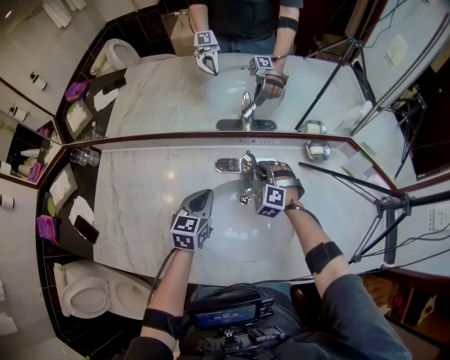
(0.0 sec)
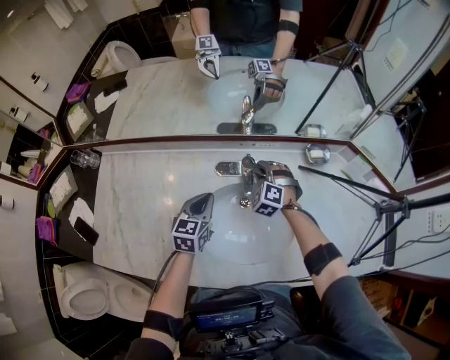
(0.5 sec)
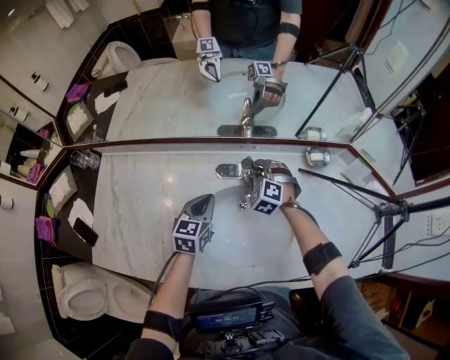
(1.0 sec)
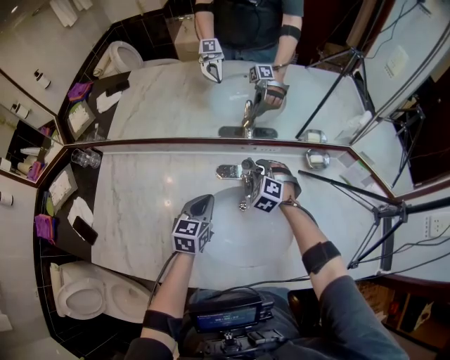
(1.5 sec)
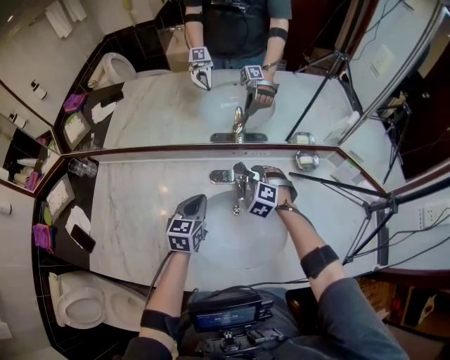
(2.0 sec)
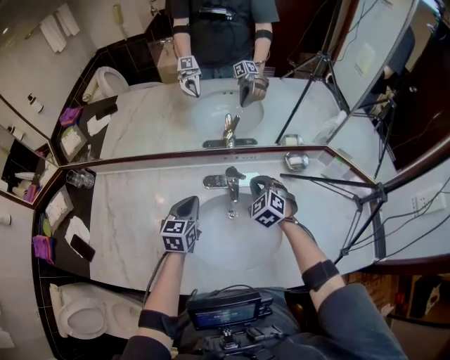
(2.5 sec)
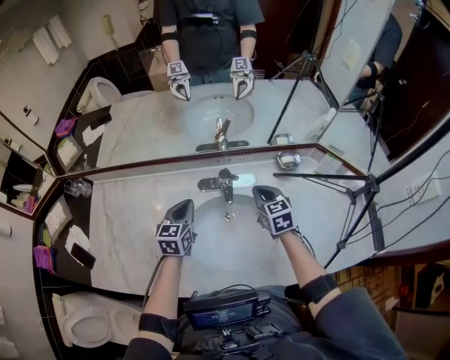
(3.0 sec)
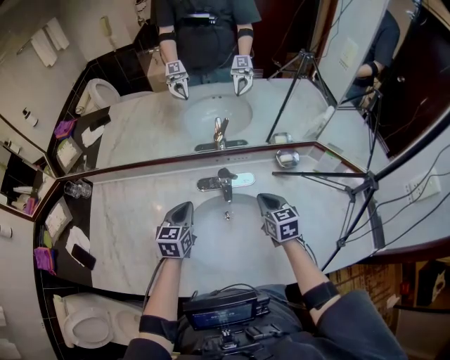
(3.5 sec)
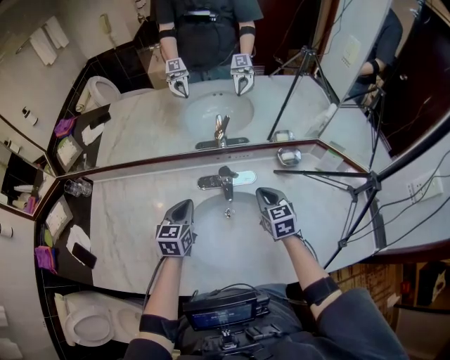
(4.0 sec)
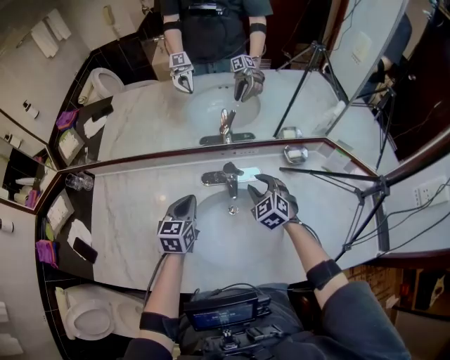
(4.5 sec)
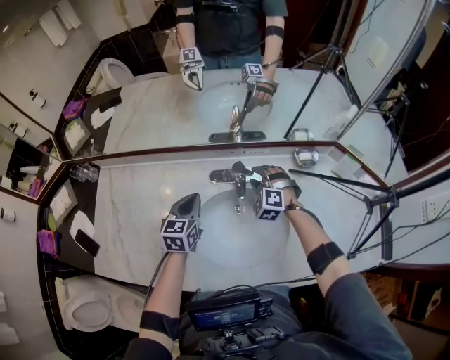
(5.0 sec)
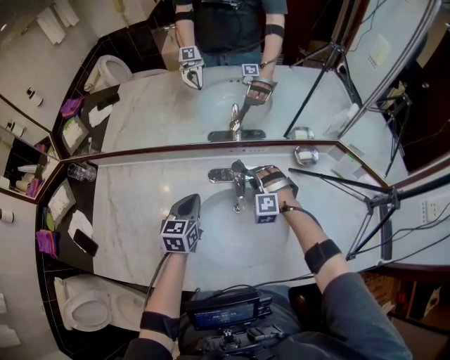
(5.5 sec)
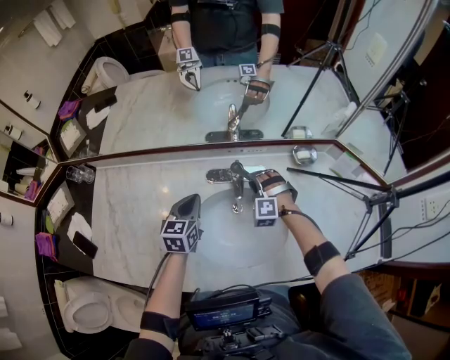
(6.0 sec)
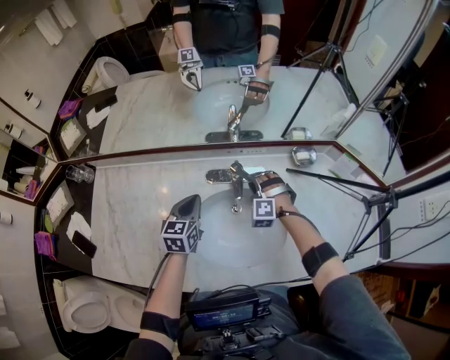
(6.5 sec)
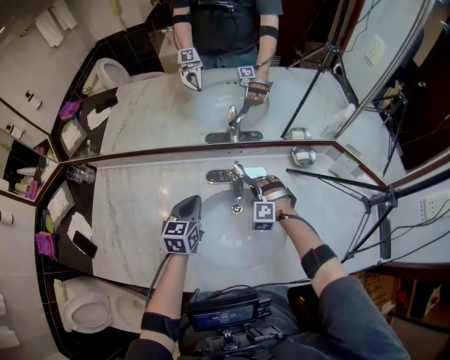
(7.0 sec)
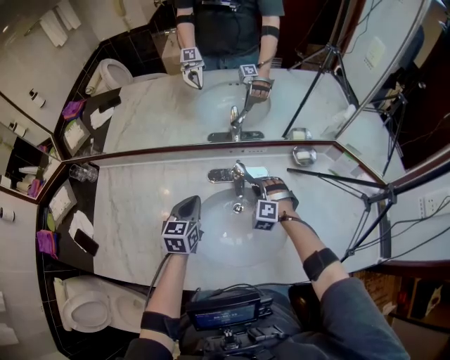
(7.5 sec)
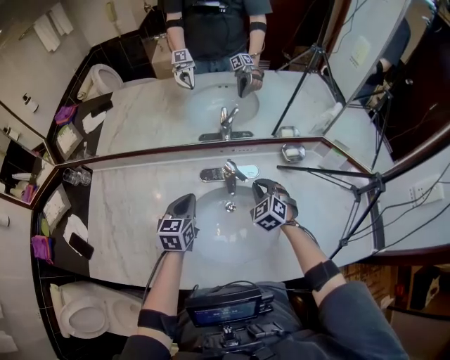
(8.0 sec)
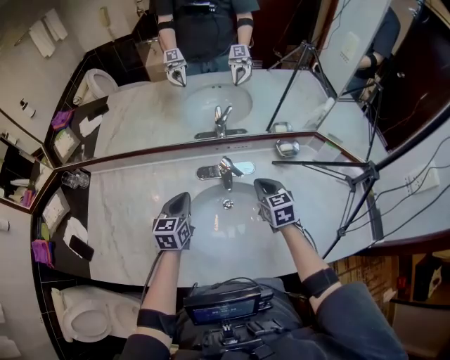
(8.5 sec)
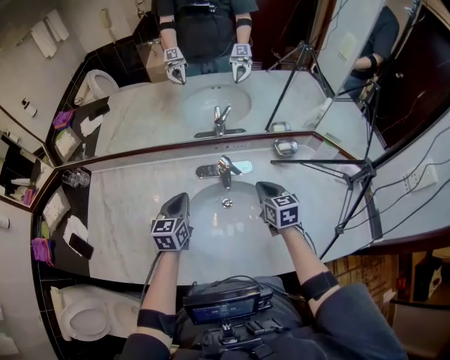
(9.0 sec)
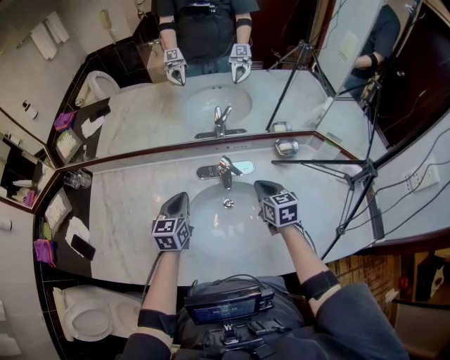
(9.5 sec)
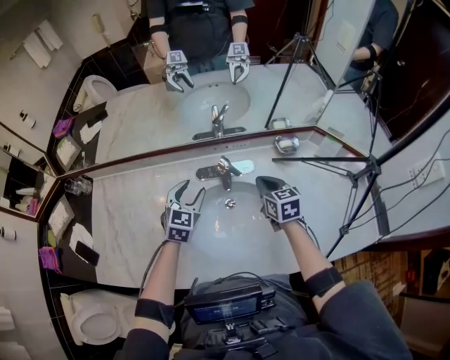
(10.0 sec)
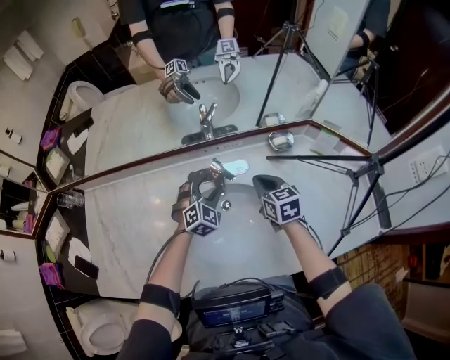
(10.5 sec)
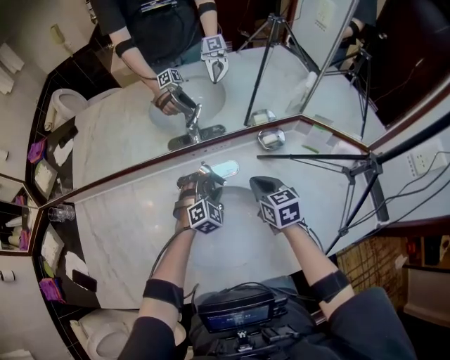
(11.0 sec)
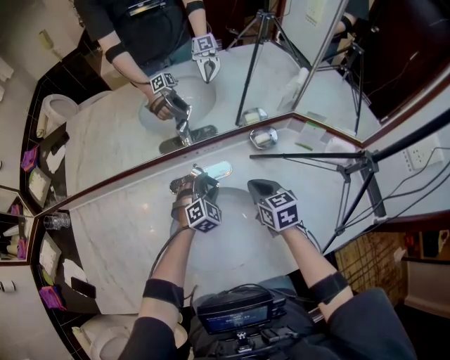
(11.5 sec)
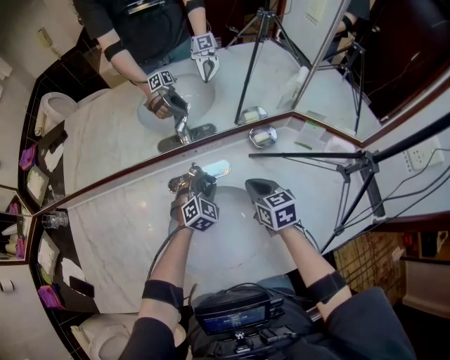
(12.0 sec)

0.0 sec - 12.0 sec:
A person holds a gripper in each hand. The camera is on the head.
0.0 sec - 2.0 sec: The grippers stay close to where they were, moving slightly.
2.0 sec - 4.0 sec: The right gripper goes some 15 cm to the right, backward and upward, rotates around the line of its fingers by some 60 degrees, clockwise from behind, and closes up.
4.0 sec - 6.0 sec: The right gripper shifts about 15 cm downward, to the left and forward, rotates around the line of its fingers by approximately 80 degrees, counterclockwise from behind, and opens up.
6.0 sec - 8.0 sec: The right gripper heads upward, covering some 5 cm, rolls clockwise, seen from behind, by some 40 degrees, and closes its fingers.
8.0 sec - 10.0 sec: The left gripper changes place by some 5 cm, rotates roughly 30 degrees, and opens up. Meanwhile the right gripper ends up some 5 cm from where it was, and twists some 50 degrees clockwise, seen from behind.
10.0 sec - 12.0 sec: The left gripper is displaced to the right, downward and forward by roughly 20 cm, and swivels roughly 30 degrees; the right gripper moves roughly 5 cm.

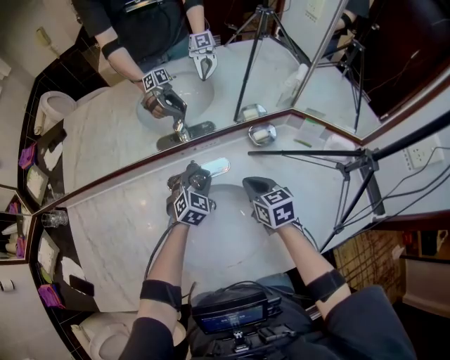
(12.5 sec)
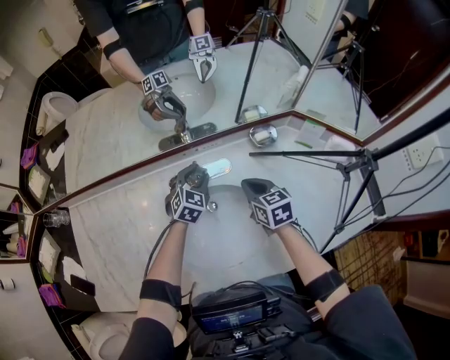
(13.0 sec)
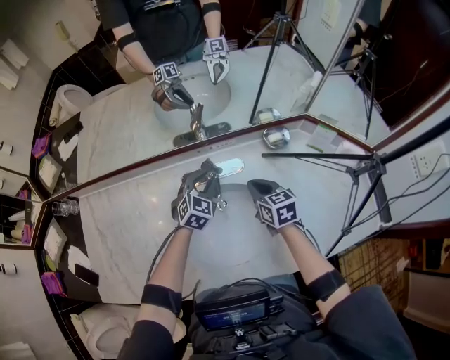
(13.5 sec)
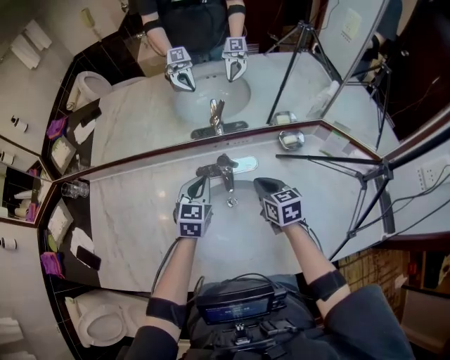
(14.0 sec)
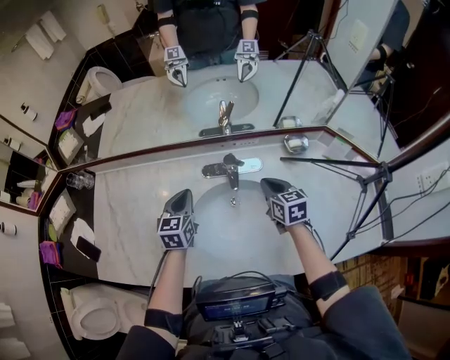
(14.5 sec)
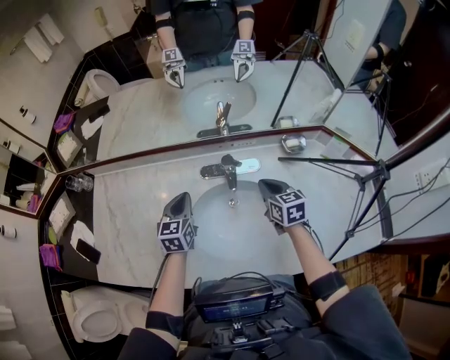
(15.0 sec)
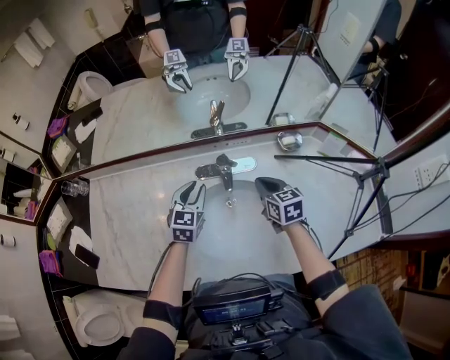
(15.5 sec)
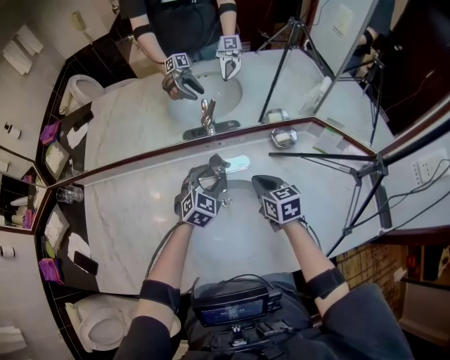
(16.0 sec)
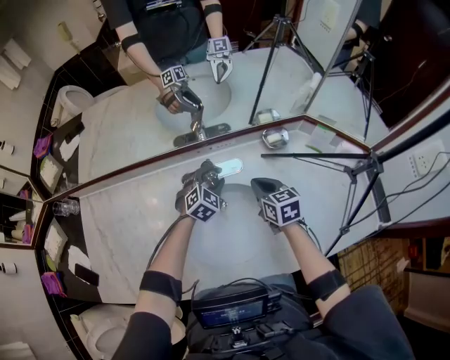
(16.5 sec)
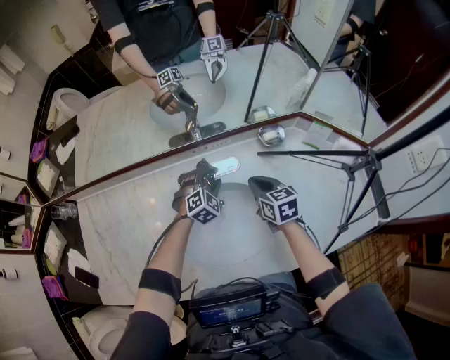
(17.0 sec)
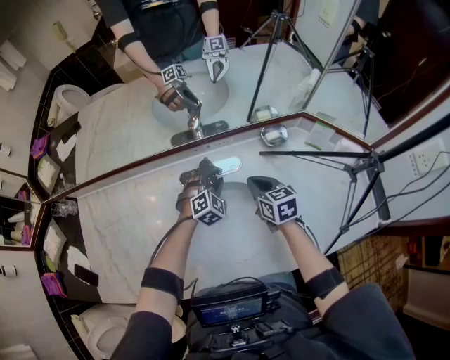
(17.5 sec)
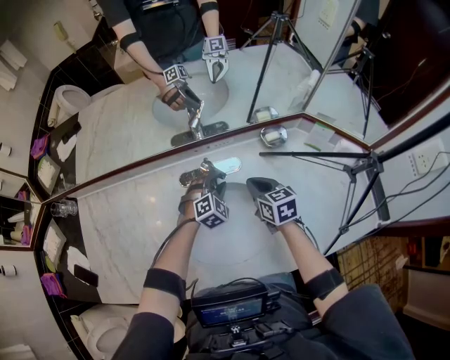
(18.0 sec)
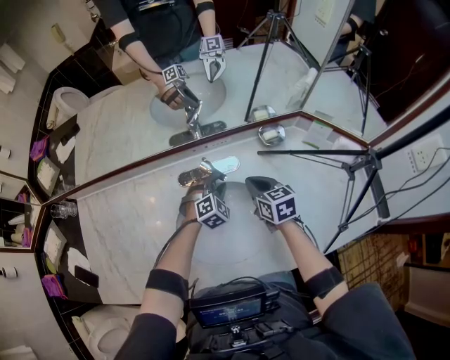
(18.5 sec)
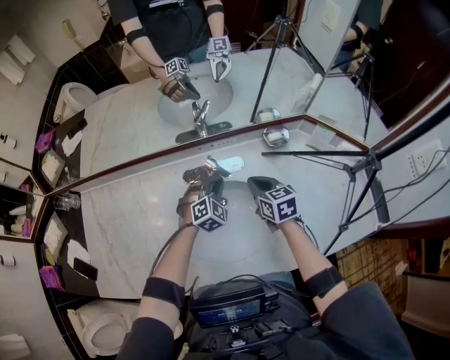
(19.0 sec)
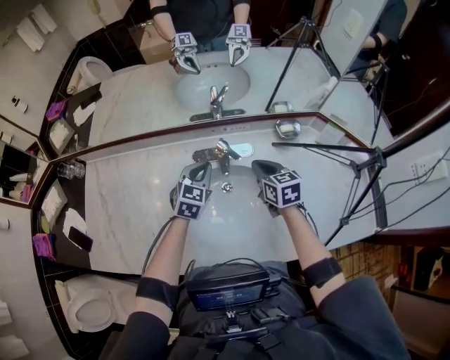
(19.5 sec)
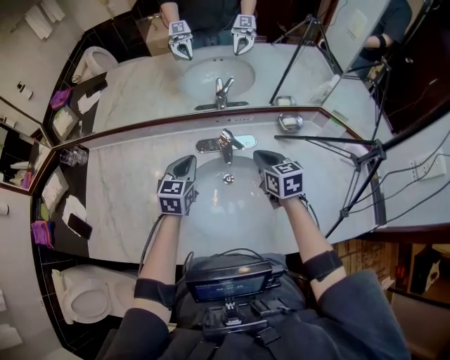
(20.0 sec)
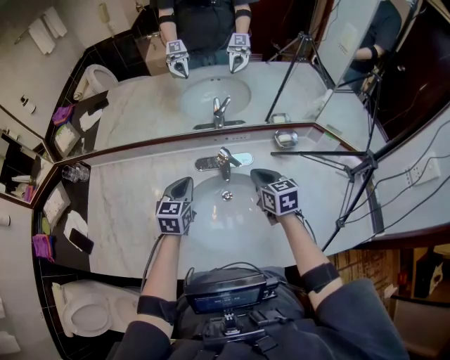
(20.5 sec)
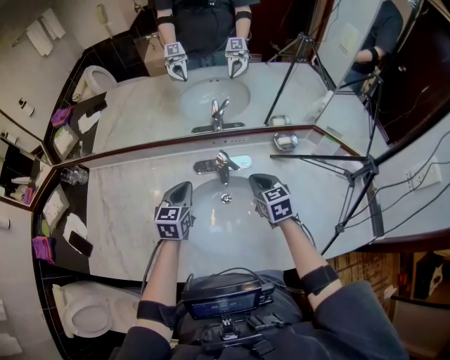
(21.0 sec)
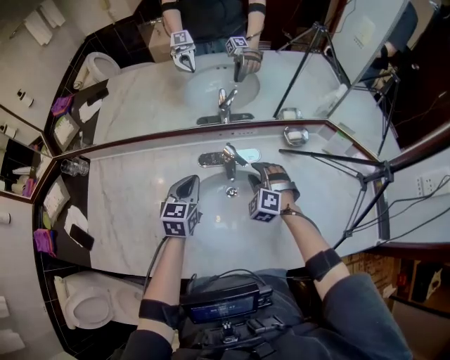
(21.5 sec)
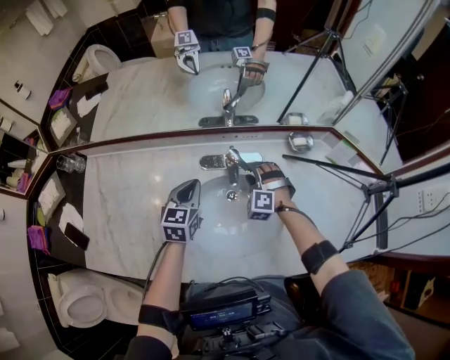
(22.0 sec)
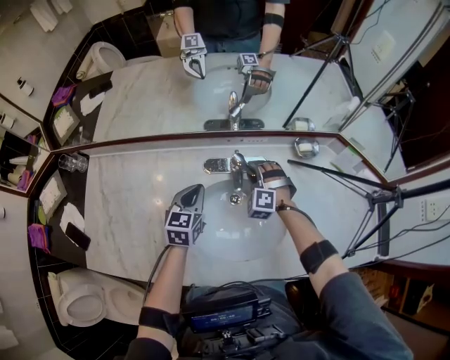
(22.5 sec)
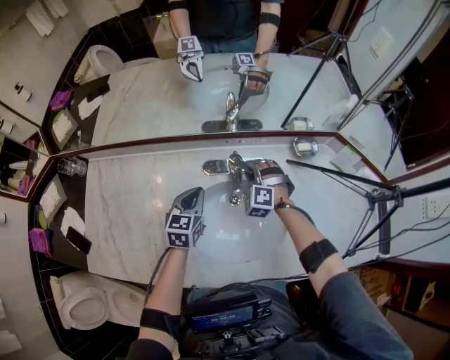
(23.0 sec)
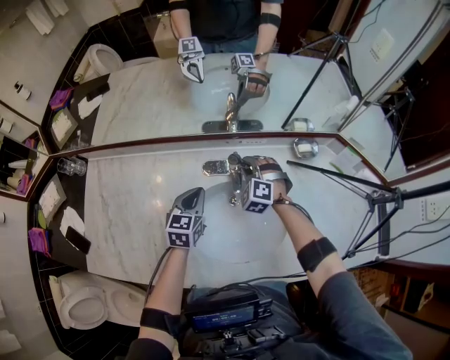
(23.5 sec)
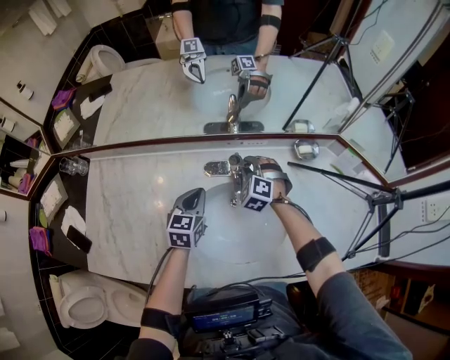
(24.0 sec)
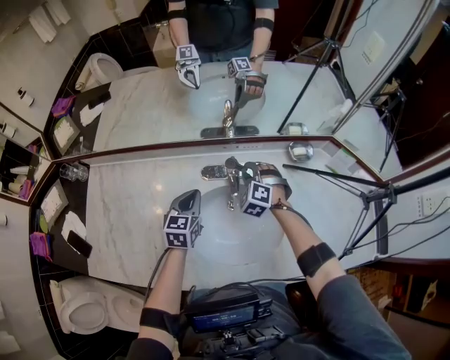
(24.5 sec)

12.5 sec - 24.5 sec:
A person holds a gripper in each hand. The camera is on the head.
12.5 sec - 14.5 sec: The right gripper moves to the left, some 5 cm. The left gripper shifts some 25 cm to the left, backward and upward, rotates around the line of its fingers by about 40 degrees, counterclockwise from behind, and closes up.
14.5 sec - 16.5 sec: The left gripper heads to the right and downward, covering some 20 cm, rotates around the line of its fingers by roughly 50 degrees, clockwise from behind, and opens its fingers.
16.5 sec - 18.5 sec: The left gripper shifts by some 5 cm.
18.5 sec - 20.5 sec: The right gripper heads upward, covering some 5 cm, while the left gripper travels to the left and upward by about 25 cm, rotates around the line of its fingers by about 60 degrees, counterclockwise from behind, and closes.
20.5 sec - 22.5 sec: The right gripper travels downward, forward and to the left by some 15 cm, rotates around the line of its fingers by roughly 80 degrees, counterclockwise from behind, and opens its fingers.
22.5 sec - 24.5 sec: There are only small adjustments of the grippers.

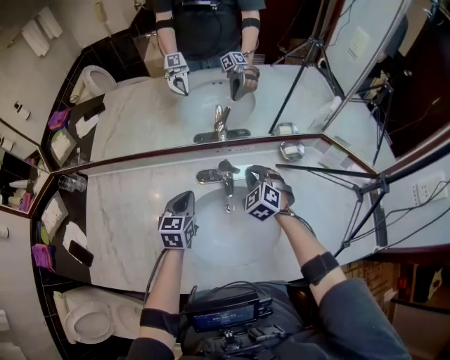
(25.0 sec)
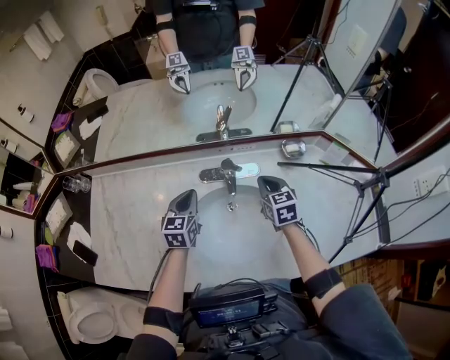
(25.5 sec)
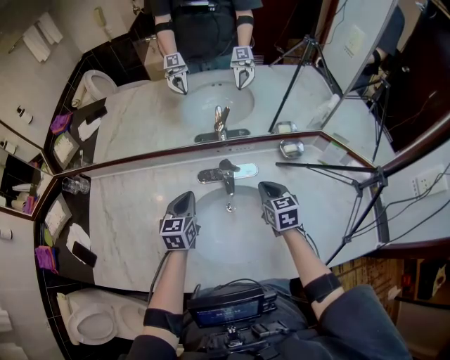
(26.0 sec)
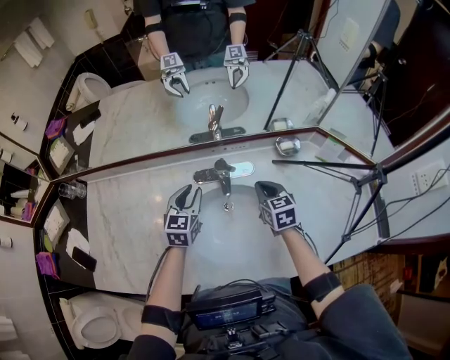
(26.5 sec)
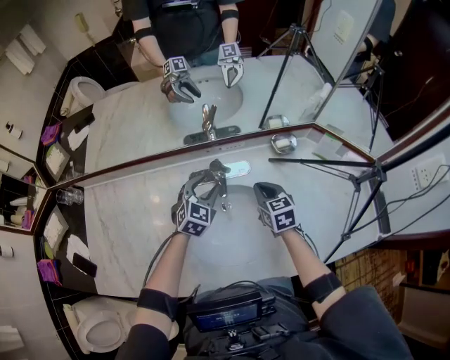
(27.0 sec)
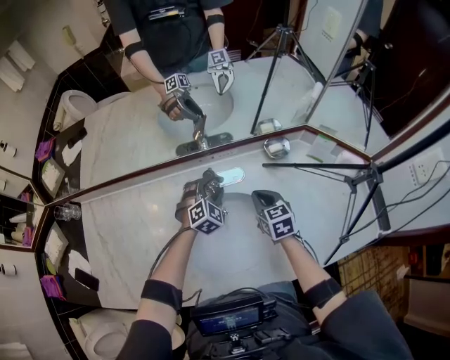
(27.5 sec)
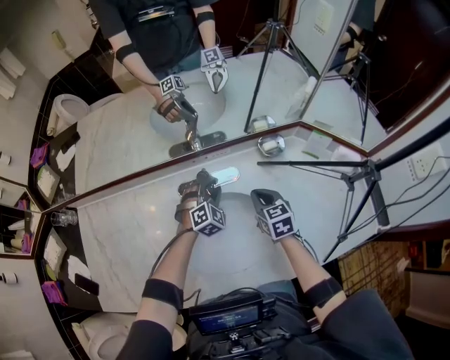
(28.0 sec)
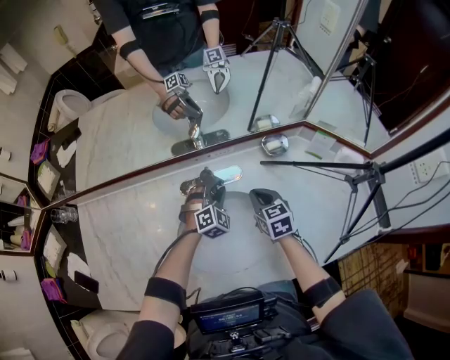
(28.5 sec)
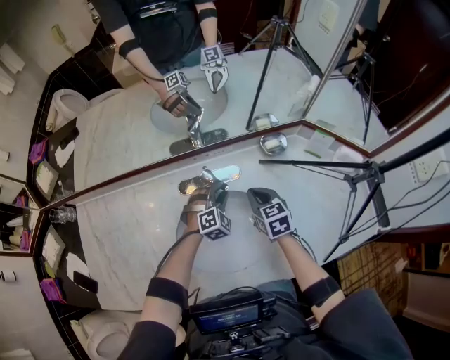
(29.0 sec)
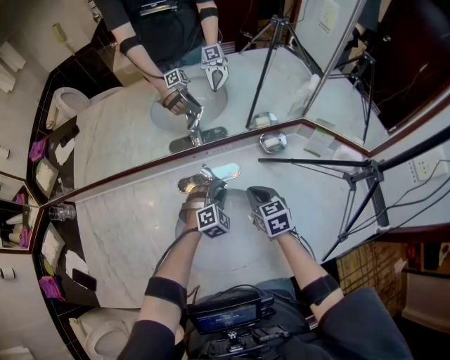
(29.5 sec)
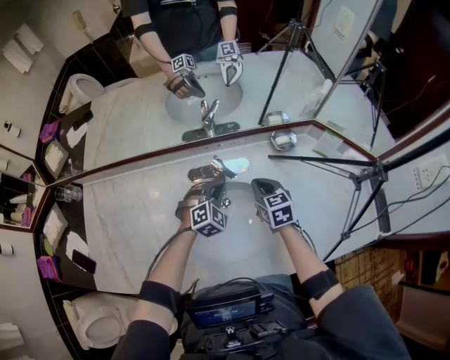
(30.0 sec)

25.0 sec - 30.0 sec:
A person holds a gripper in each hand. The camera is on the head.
25.0 sec - 27.5 sec: The right gripper is displaced to the right and backward by approximately 10 cm, and rotates around the line of its fingers by some 50 degrees, clockwise from behind, while the left gripper travels to the right by about 15 cm, rolls clockwise, seen from behind, by about 50 degrees, and opens its fingers.
27.5 sec - 30.0 sec: The left gripper closes its fingers.
